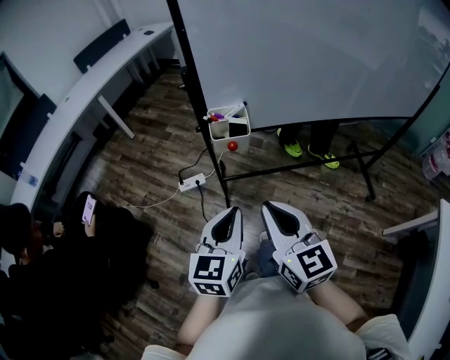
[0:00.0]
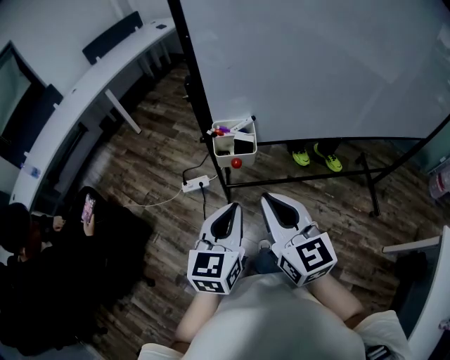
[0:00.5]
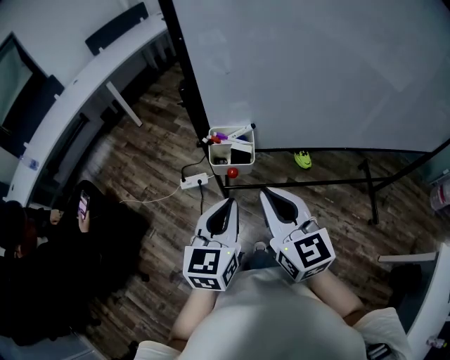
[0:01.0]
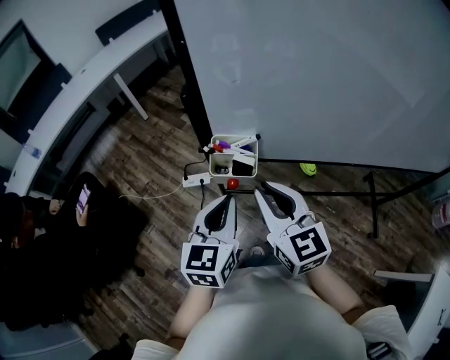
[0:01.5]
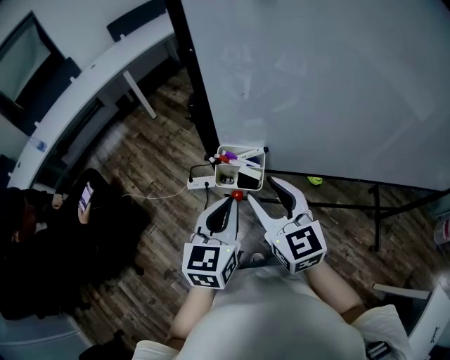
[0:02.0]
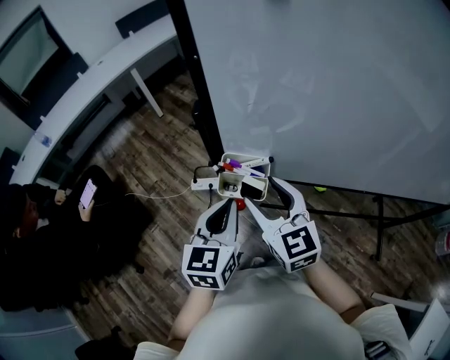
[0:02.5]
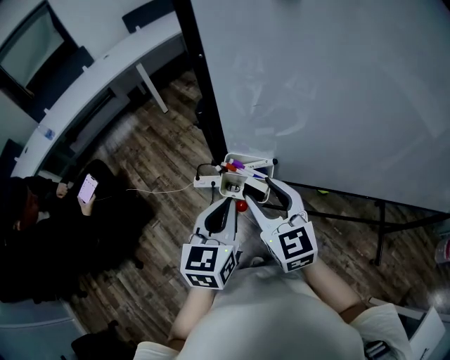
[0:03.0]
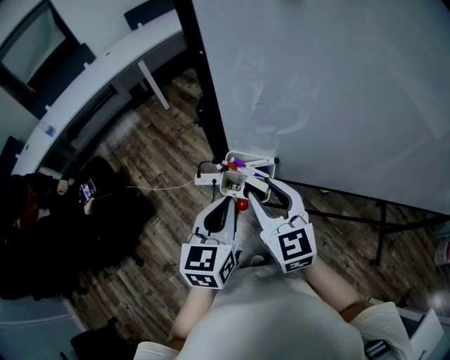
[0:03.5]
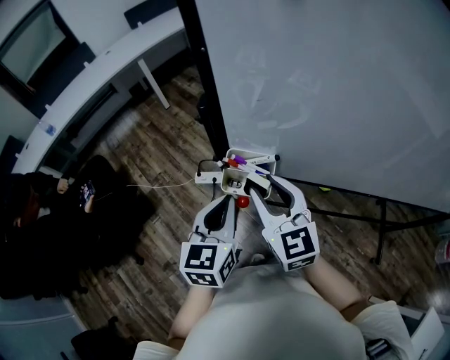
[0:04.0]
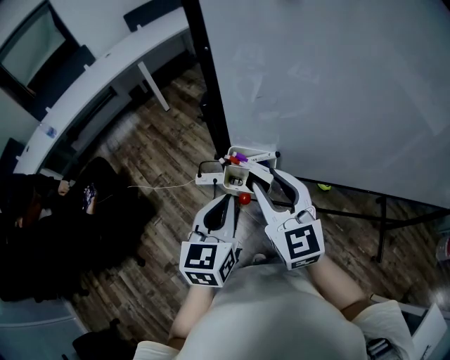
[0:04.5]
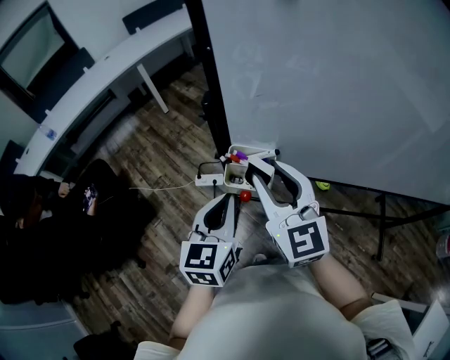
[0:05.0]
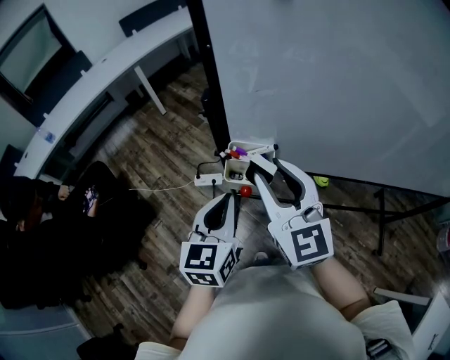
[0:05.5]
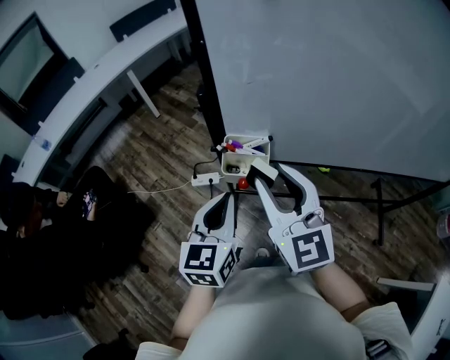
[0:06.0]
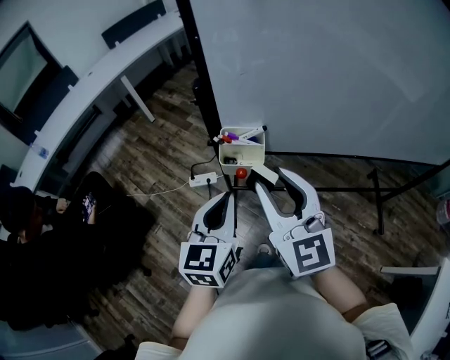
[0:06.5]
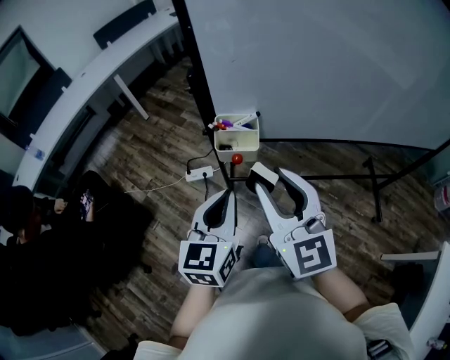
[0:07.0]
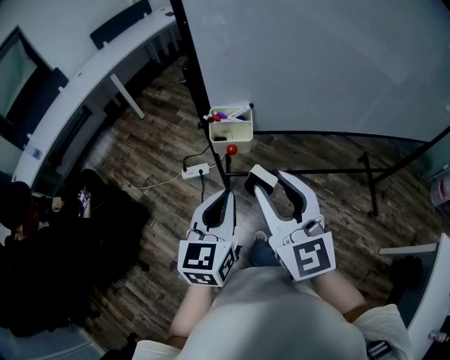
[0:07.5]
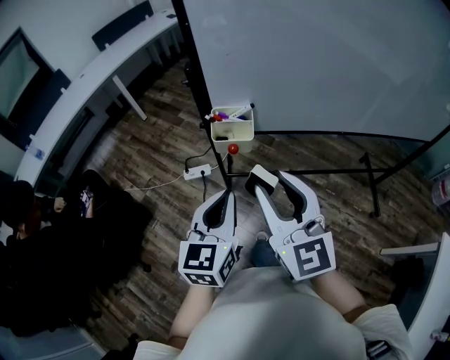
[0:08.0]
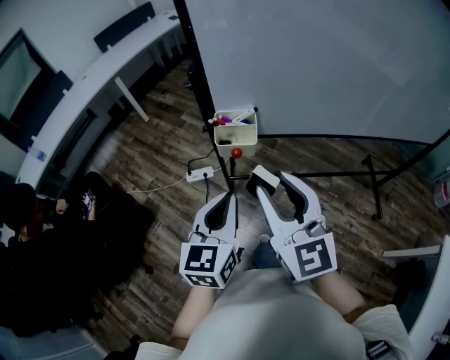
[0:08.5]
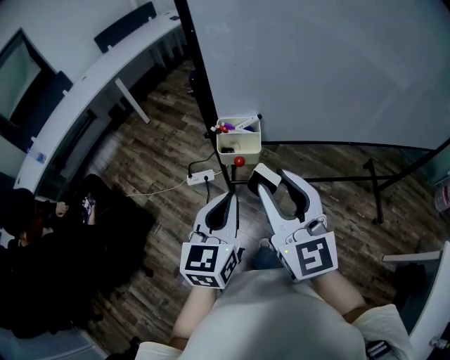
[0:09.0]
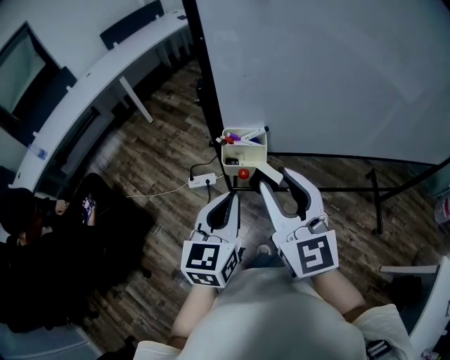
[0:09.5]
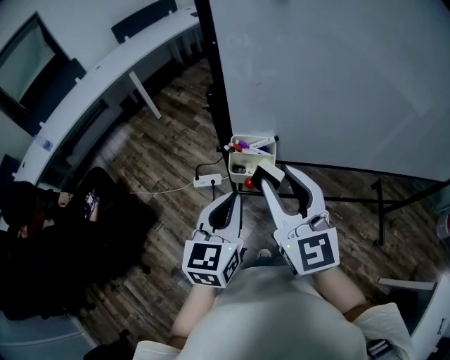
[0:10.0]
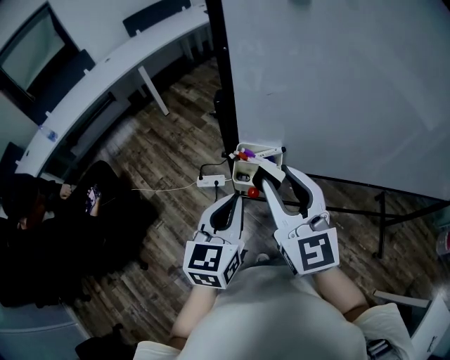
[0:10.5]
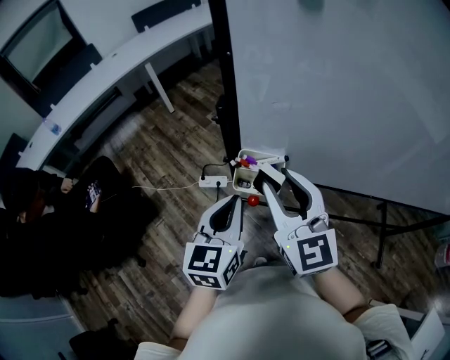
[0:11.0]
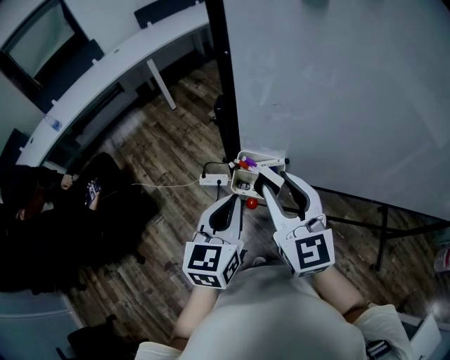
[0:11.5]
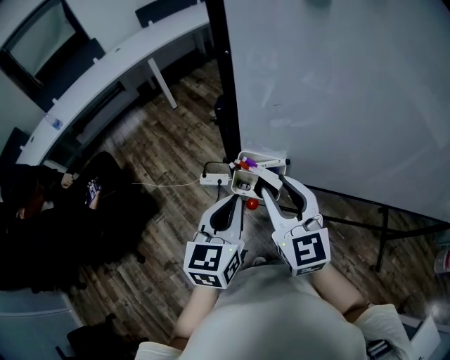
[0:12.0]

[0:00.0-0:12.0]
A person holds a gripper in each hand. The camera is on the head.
0:00.0 to 0:02.0: Both grippers travel together forward, about 20 cm. The right gripper opens.
0:02.0 to 0:04.0: There are only small adjustments of the grippers.
0:04.0 to 0:06.0: The right gripper heads upward and backward, covering some 10 cm. Meanwhile the left gripper travels backward by about 5 cm.
0:06.0 to 0:08.0: Both grippers travel together backward, roughly 10 cm.
0:08.0 to 0:10.0: The grippers both shift forward by approximately 10 cm.
0:10.0 to 0:12.0: The right gripper moves forward and downward, approximately 10 cm, while the left gripper goes approximately 5 cm forward.

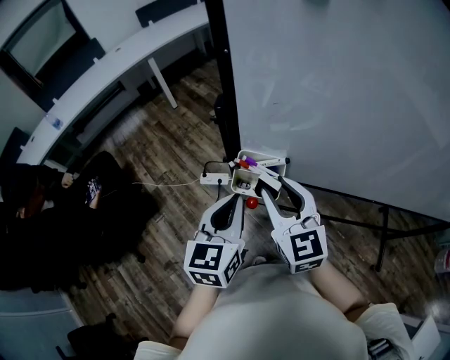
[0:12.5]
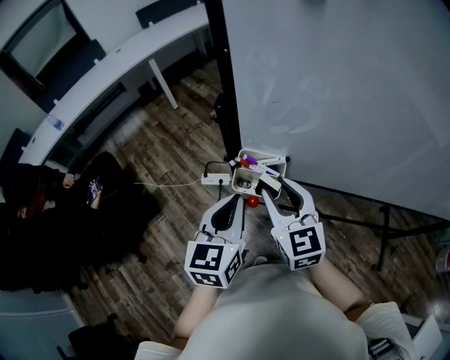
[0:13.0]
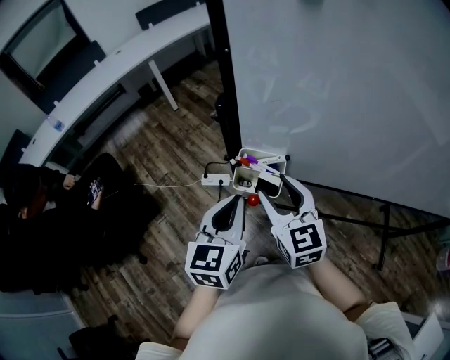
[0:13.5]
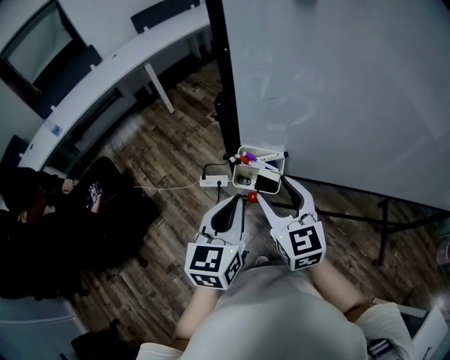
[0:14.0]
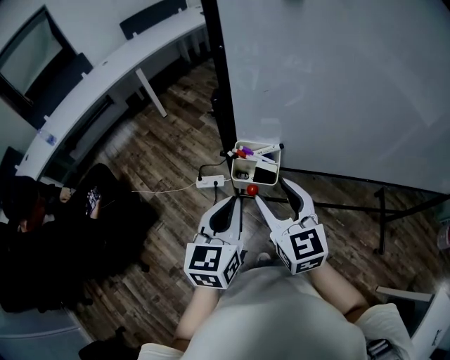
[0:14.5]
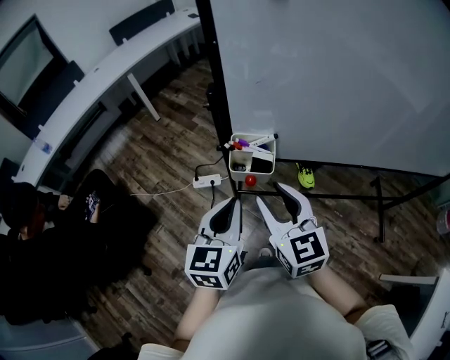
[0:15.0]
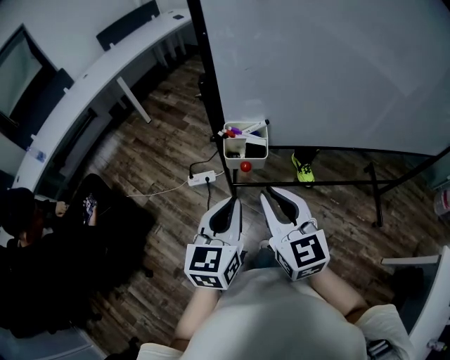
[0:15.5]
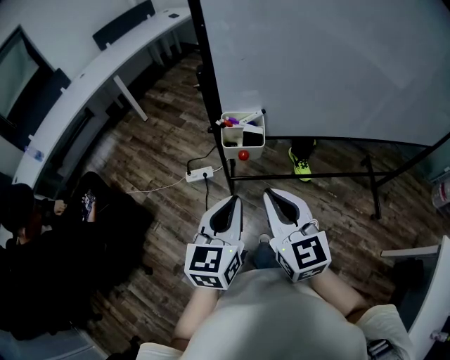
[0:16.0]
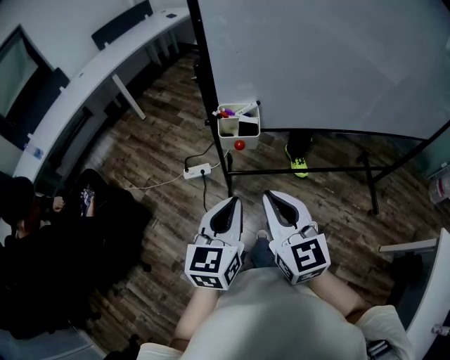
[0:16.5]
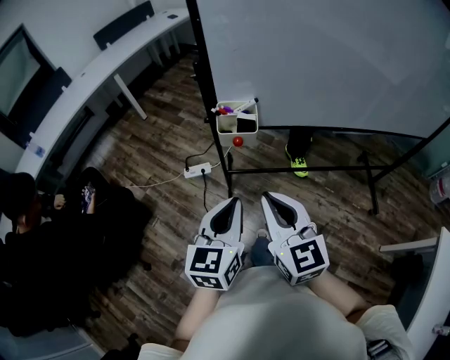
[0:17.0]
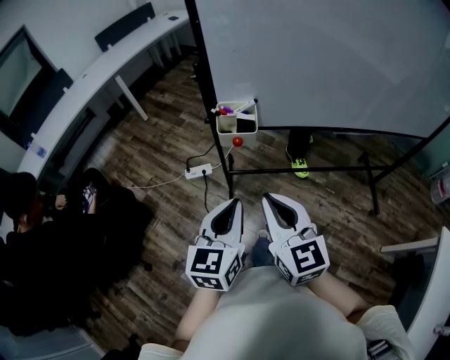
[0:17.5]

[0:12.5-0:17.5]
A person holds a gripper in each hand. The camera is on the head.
0:12.5 to 0:15.0: The two grippers go approximately 10 cm backward.
0:15.0 to 0:17.5: Both grippers travel together backward, some 15 cm. The right gripper closes its fingers.

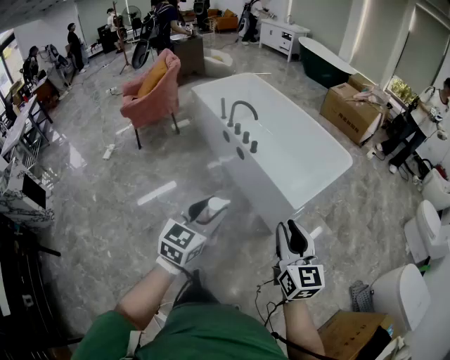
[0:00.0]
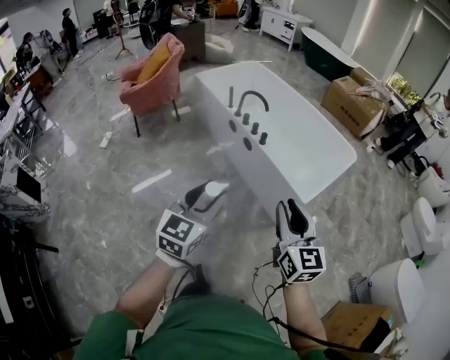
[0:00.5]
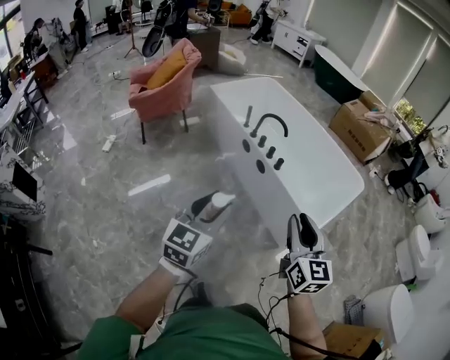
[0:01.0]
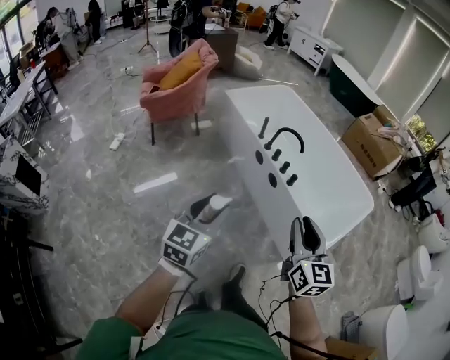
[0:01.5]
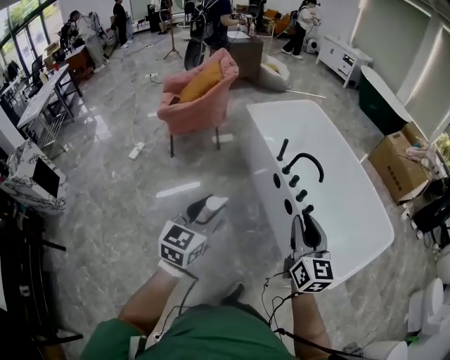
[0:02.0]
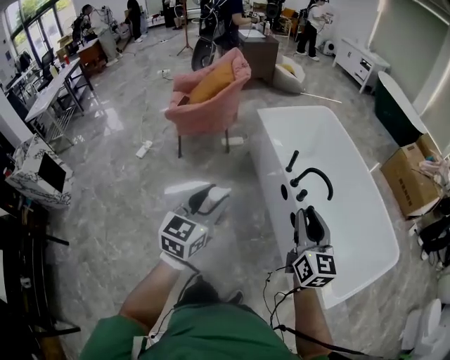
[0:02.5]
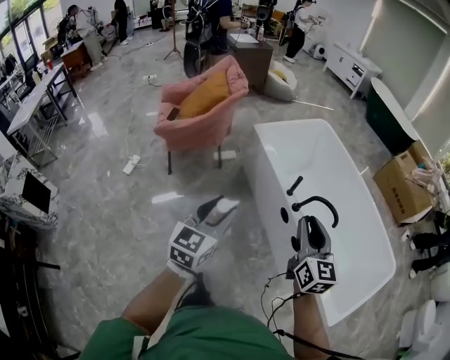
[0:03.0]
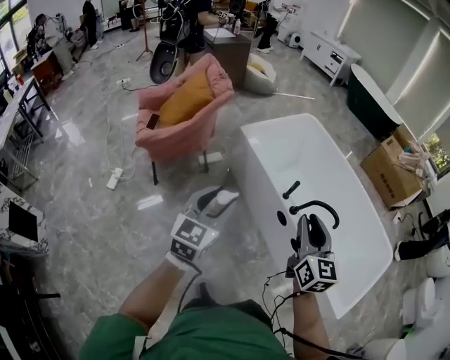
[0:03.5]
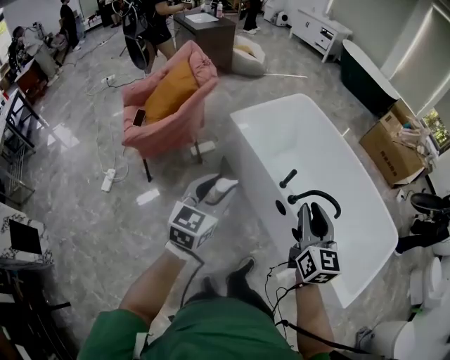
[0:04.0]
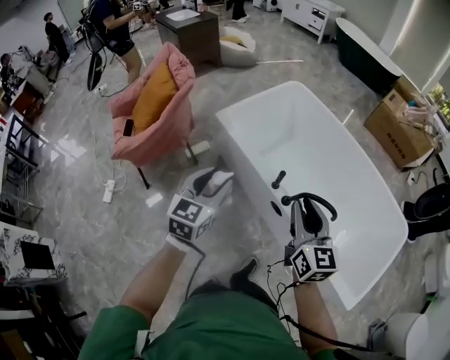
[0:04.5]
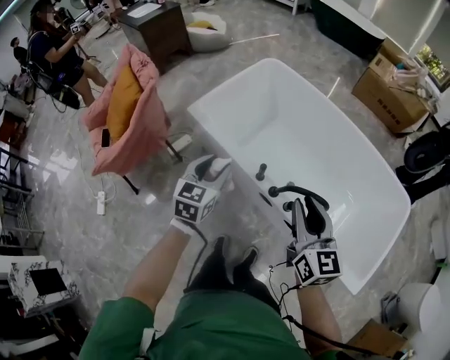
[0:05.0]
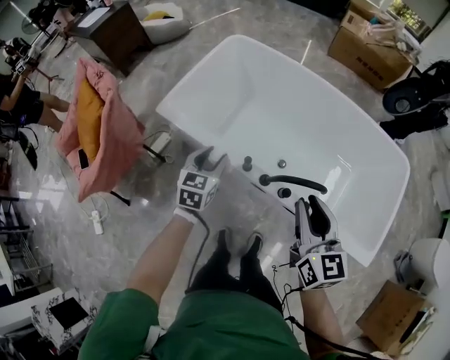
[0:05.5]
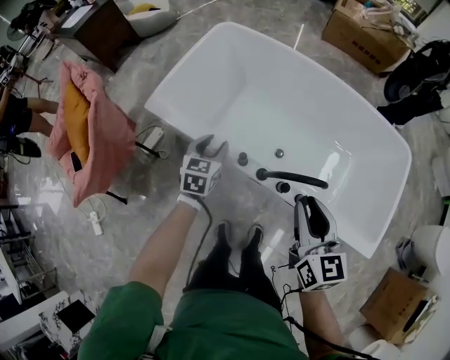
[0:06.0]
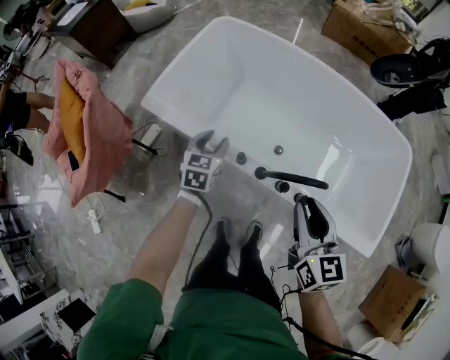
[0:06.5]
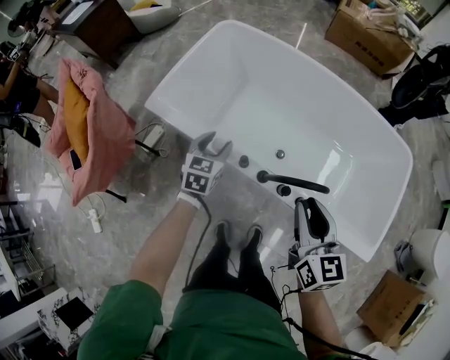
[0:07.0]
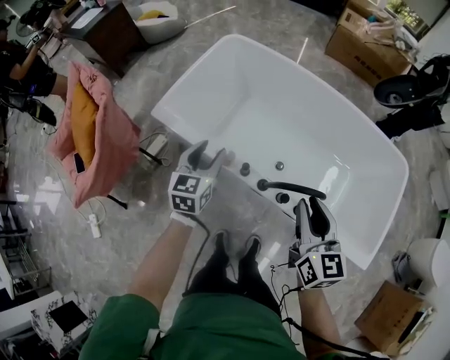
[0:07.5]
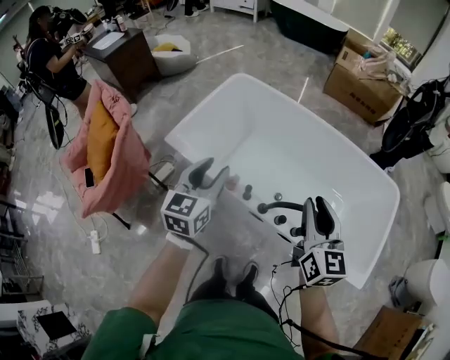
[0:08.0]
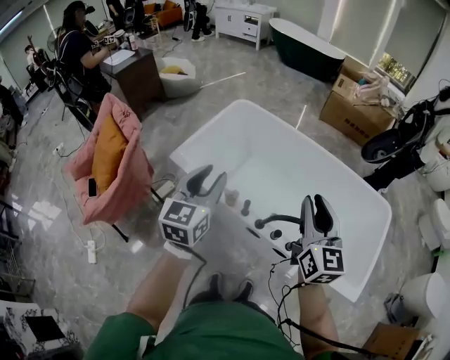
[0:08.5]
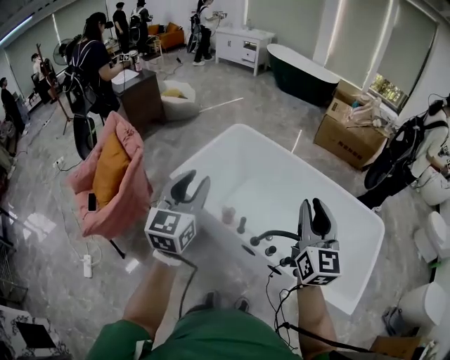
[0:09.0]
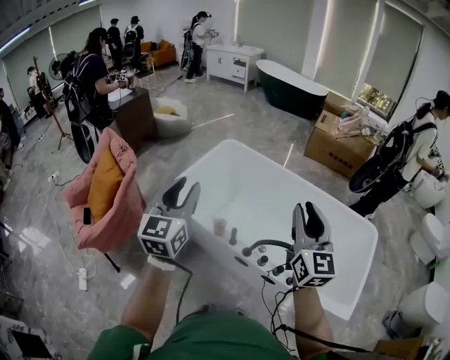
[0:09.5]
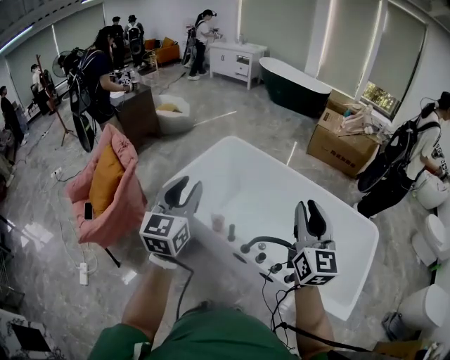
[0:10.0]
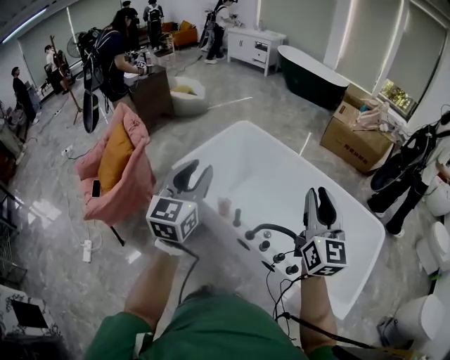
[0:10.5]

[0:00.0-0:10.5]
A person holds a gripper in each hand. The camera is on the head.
0:00.0 to 0:02.0: The two grippers travel together, forward and to the left, roughly 60 cm.
0:02.0 to 0:04.0: The pair of grippers is taken forward and to the left, about 50 cm.
0:04.0 to 0:06.5: The right gripper shifts about 35 cm forward, downward and to the right, and changes its angle by approximately 20 degrees, while the left gripper travels forward and downward by about 60 cm, and turns by some 30 degrees.
0:06.5 to 0:08.5: The right gripper moves upward, some 20 cm, and turns by roughly 20 degrees; the left gripper travels upward and backward by some 40 cm, and rotates approximately 30 degrees.
0:08.5 to 0:10.5: The left gripper goes roughly 10 cm upward and backward. Meanwhile the right gripper shifts approximately 10 cm to the right and upward.
